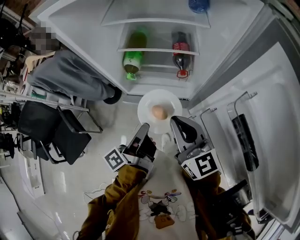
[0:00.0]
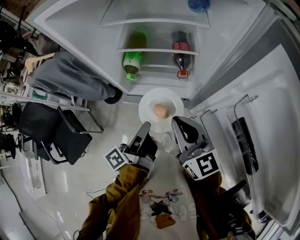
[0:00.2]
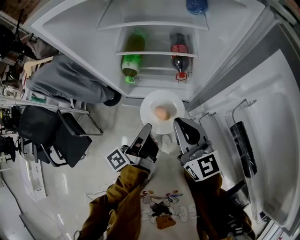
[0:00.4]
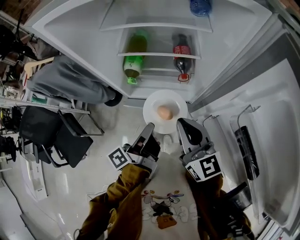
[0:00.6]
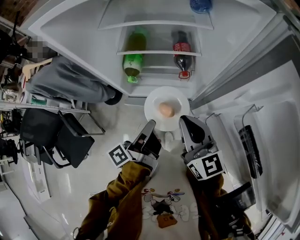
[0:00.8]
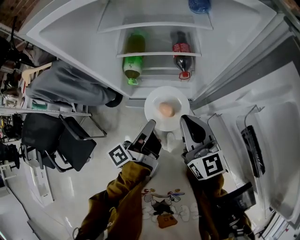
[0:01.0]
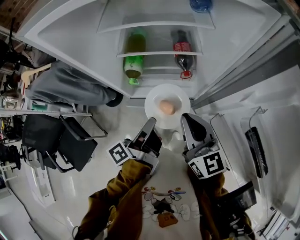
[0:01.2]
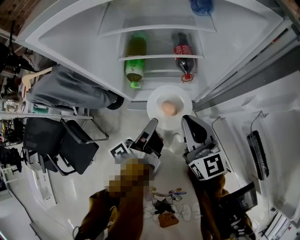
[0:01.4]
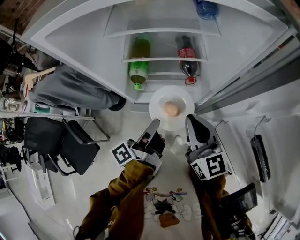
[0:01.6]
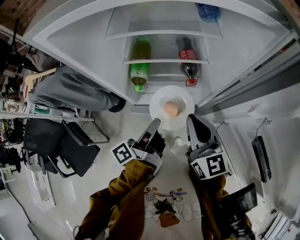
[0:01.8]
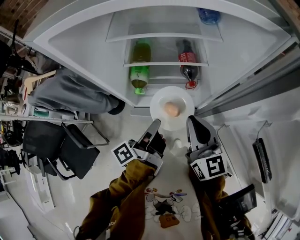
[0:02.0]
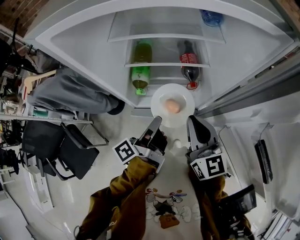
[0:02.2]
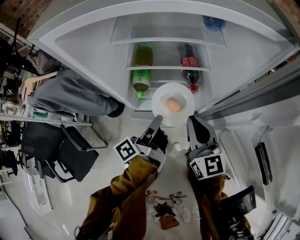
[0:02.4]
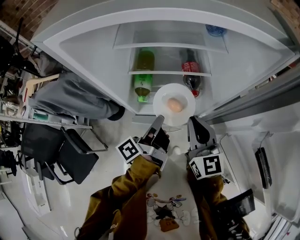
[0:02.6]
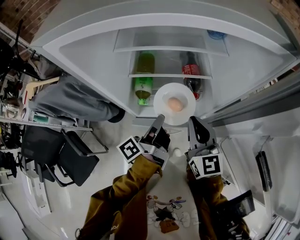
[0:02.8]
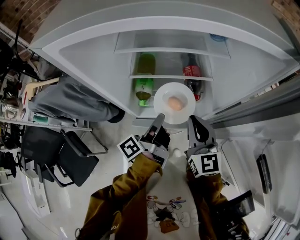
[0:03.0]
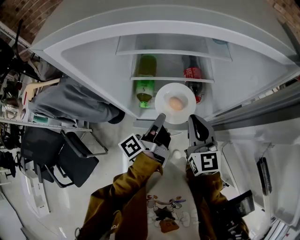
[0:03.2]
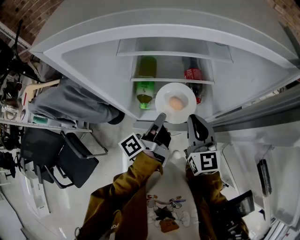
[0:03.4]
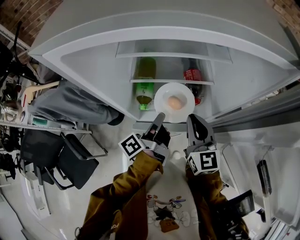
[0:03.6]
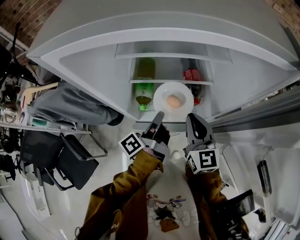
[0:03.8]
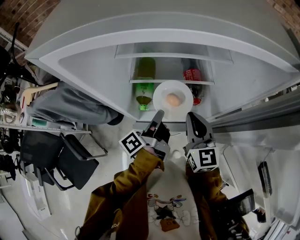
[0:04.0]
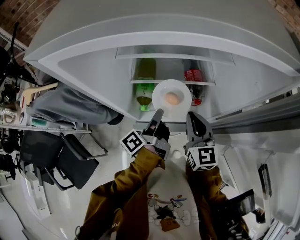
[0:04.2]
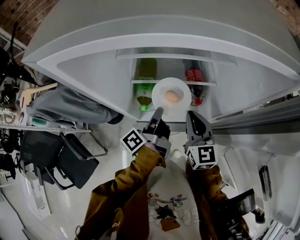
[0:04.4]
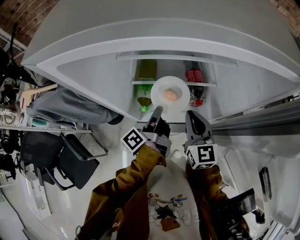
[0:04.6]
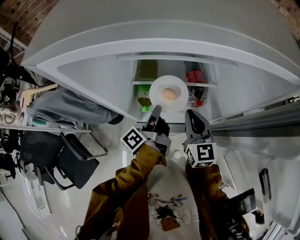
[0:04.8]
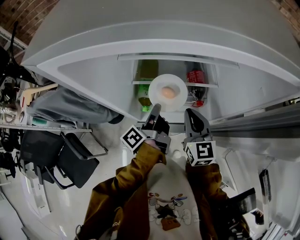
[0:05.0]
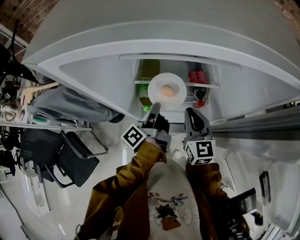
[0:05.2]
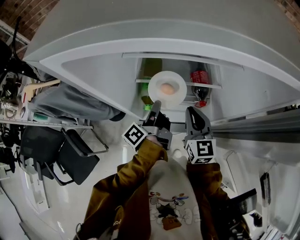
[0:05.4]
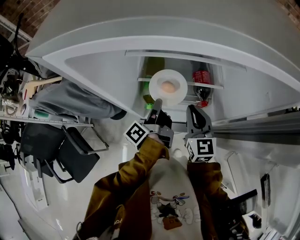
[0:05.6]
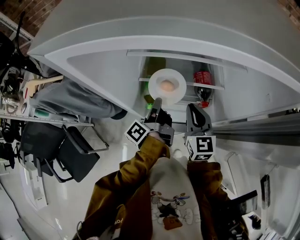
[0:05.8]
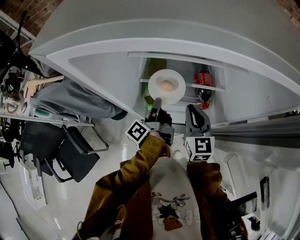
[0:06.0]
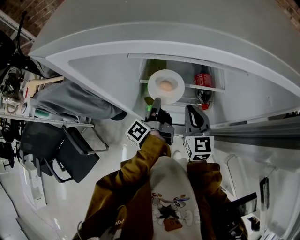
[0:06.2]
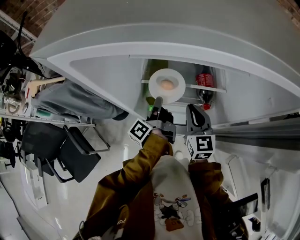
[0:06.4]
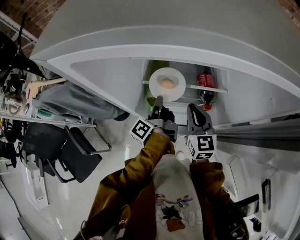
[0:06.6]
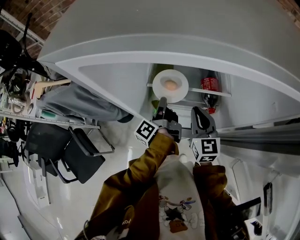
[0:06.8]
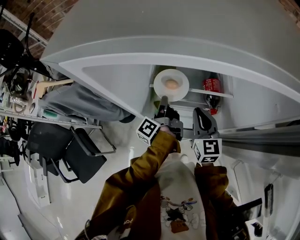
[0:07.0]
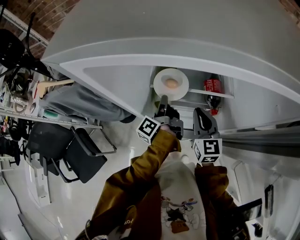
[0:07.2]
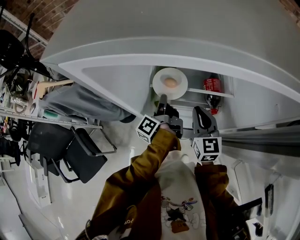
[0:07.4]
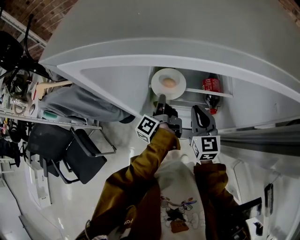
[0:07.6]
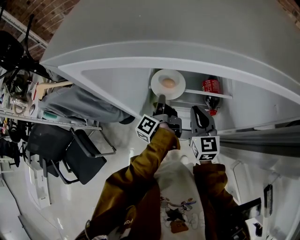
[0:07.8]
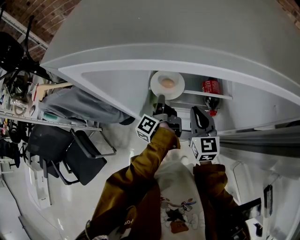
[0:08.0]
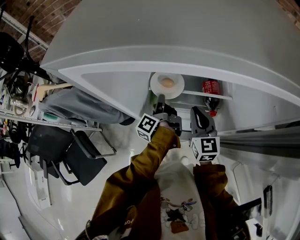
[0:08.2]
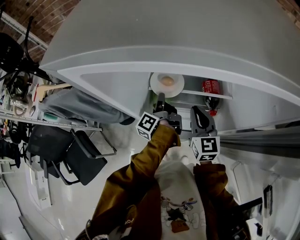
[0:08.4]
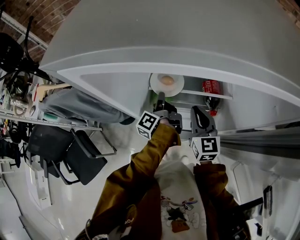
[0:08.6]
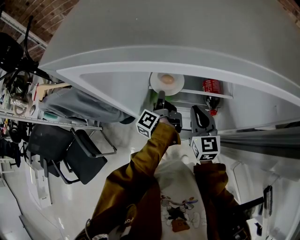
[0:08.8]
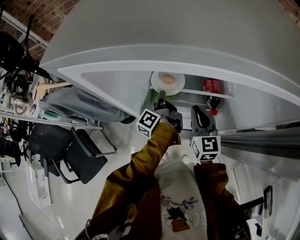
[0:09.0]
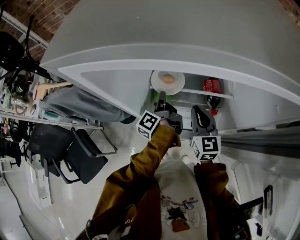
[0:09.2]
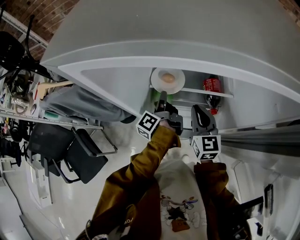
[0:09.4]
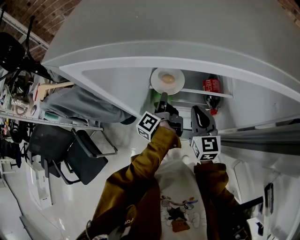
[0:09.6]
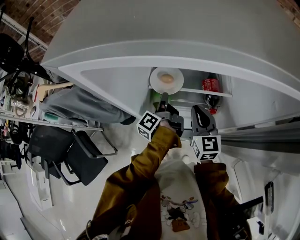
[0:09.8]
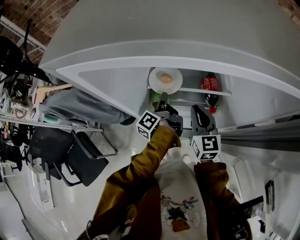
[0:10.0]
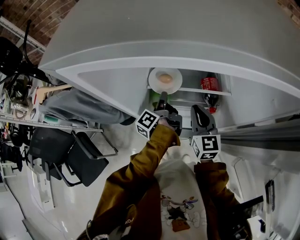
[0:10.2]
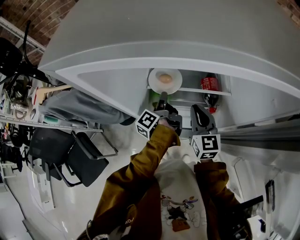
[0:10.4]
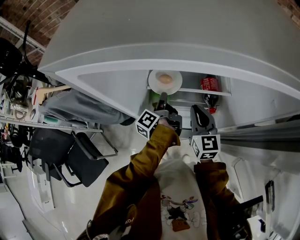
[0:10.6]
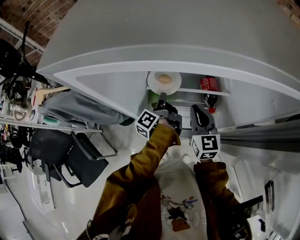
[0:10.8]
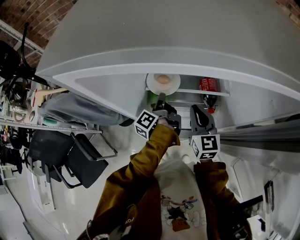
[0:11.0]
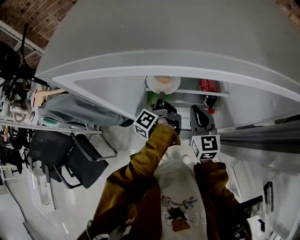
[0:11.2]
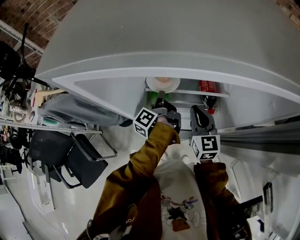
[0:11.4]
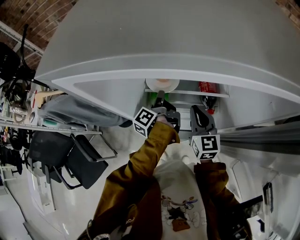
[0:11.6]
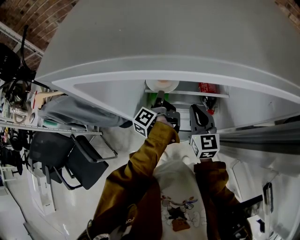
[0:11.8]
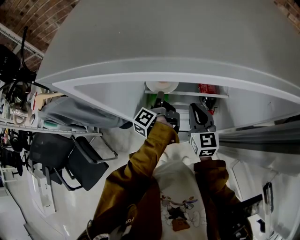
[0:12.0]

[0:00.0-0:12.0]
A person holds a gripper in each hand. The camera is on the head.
0:00.0 to 0:01.6: The right gripper moves approximately 5 cm.
0:01.6 to 0:03.0: The right gripper changes place by some 5 cm.
0:03.0 to 0:04.4: The right gripper changes place by roughly 5 cm.
0:04.4 to 0:06.0: The right gripper ends up approximately 5 cm from where it was.

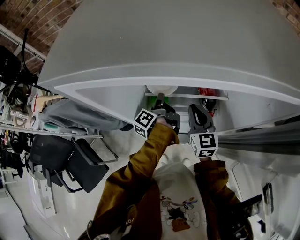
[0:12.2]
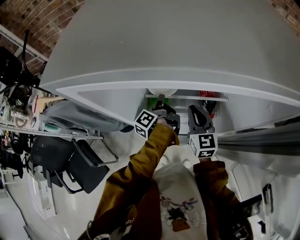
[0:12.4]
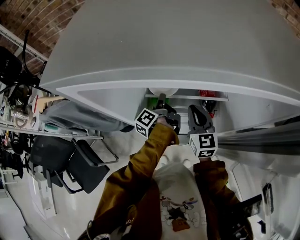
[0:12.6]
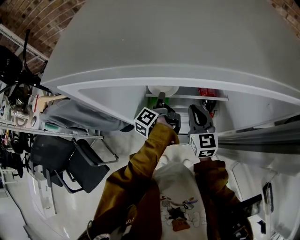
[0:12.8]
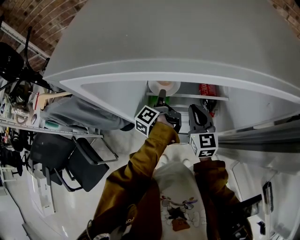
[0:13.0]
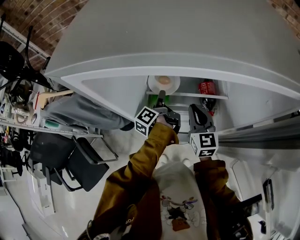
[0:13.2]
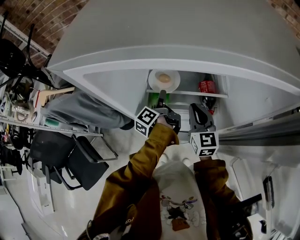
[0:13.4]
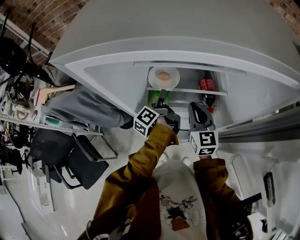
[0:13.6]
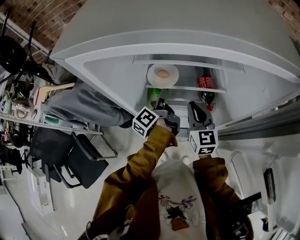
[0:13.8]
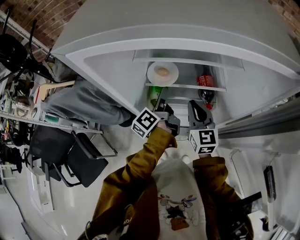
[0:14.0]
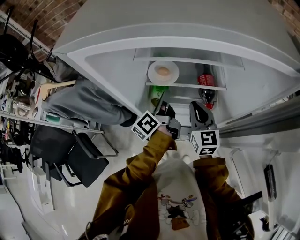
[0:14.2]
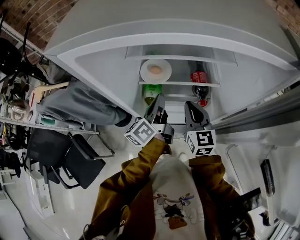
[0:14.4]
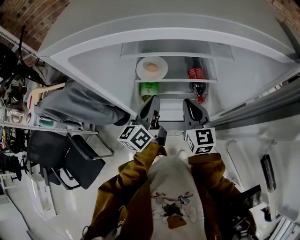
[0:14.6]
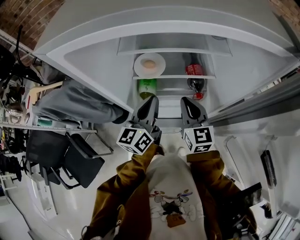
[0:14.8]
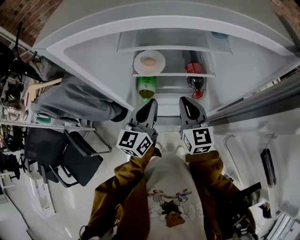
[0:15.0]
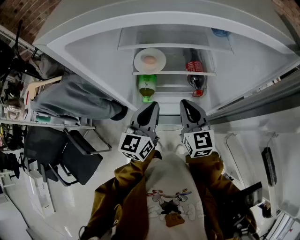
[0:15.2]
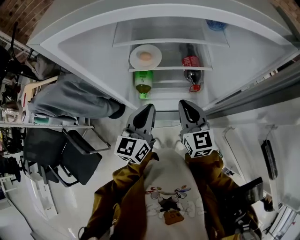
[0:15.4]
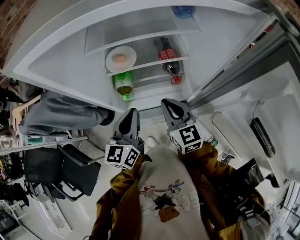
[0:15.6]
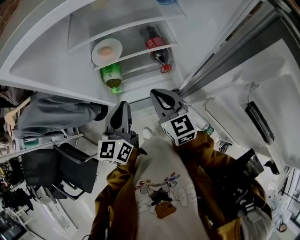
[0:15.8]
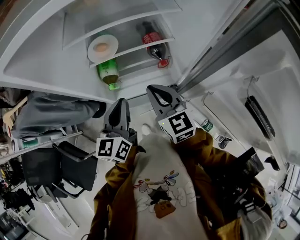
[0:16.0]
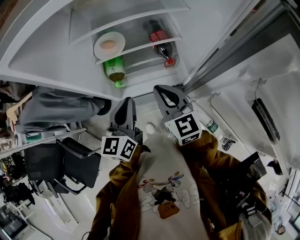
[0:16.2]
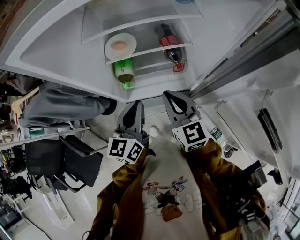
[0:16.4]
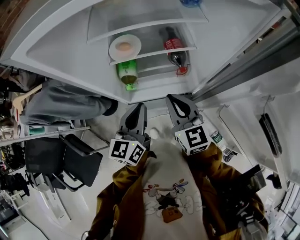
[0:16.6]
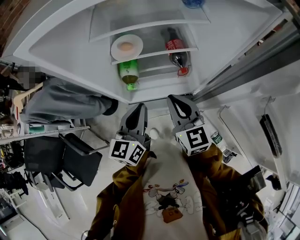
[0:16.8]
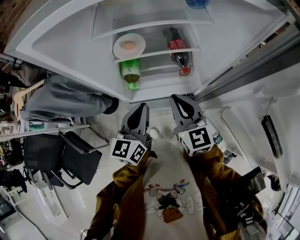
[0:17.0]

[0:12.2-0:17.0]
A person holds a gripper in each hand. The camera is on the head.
0:13.8 to 0:15.4: The right gripper changes place by roughly 10 cm.

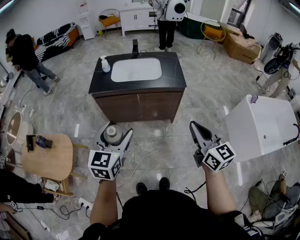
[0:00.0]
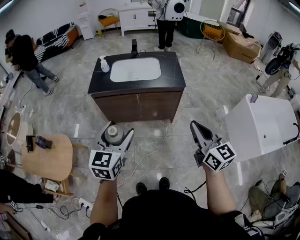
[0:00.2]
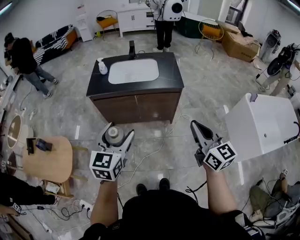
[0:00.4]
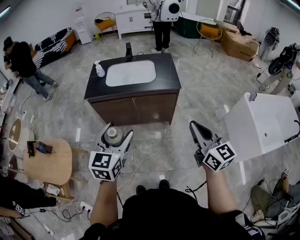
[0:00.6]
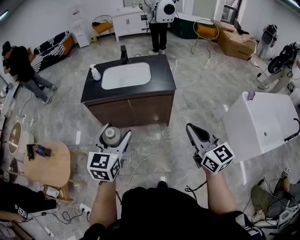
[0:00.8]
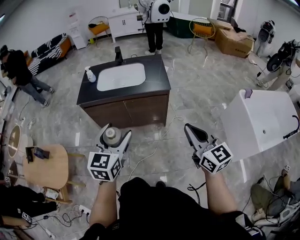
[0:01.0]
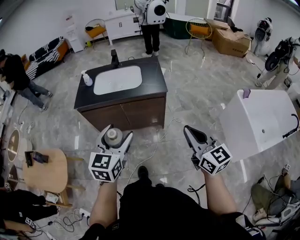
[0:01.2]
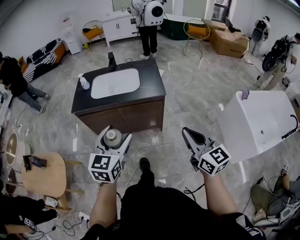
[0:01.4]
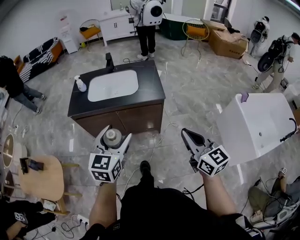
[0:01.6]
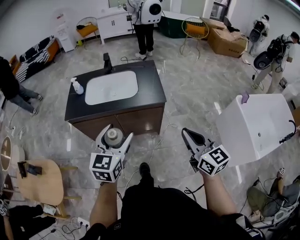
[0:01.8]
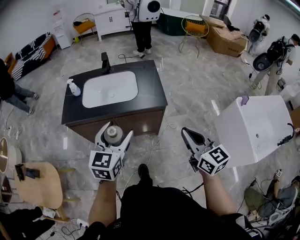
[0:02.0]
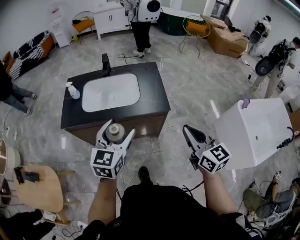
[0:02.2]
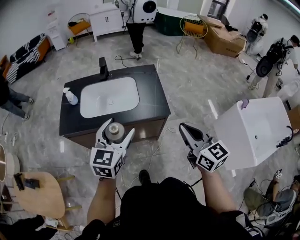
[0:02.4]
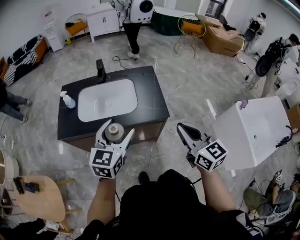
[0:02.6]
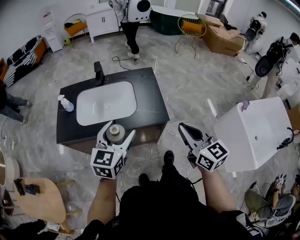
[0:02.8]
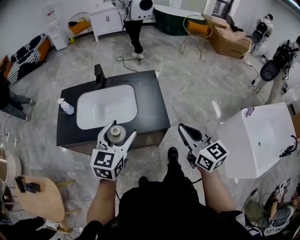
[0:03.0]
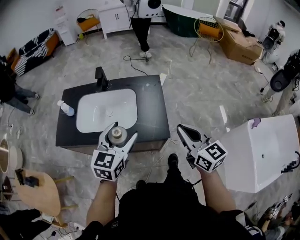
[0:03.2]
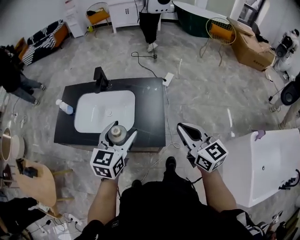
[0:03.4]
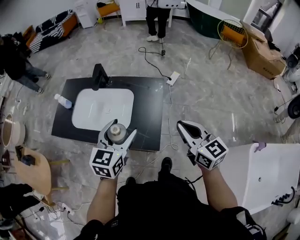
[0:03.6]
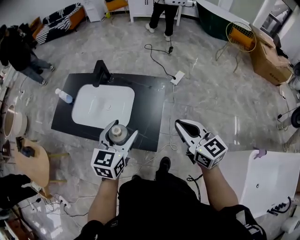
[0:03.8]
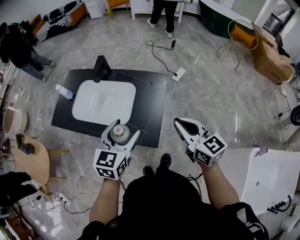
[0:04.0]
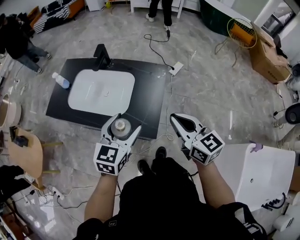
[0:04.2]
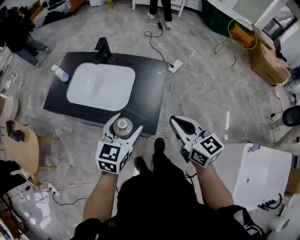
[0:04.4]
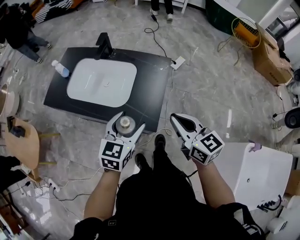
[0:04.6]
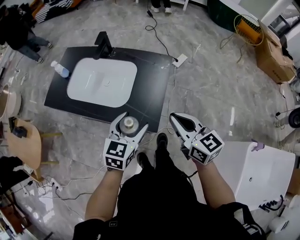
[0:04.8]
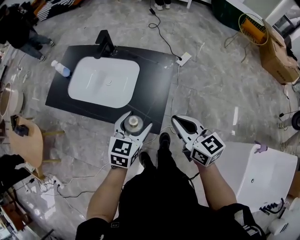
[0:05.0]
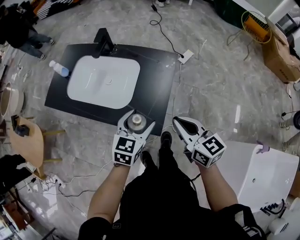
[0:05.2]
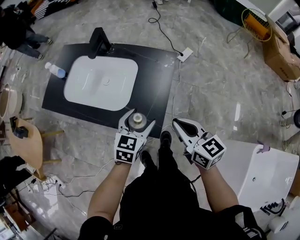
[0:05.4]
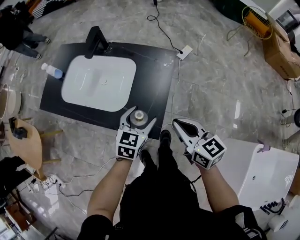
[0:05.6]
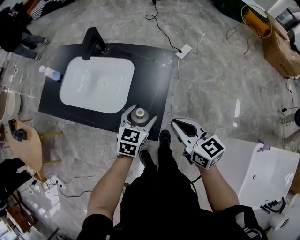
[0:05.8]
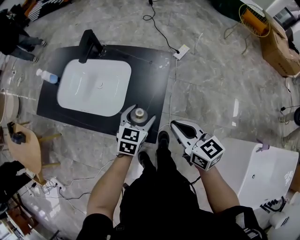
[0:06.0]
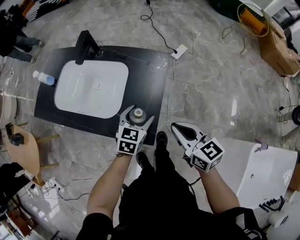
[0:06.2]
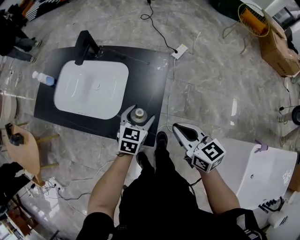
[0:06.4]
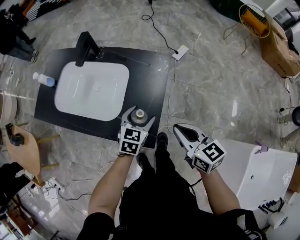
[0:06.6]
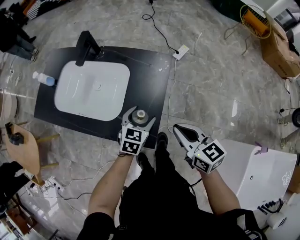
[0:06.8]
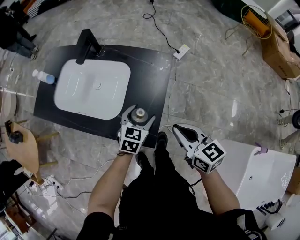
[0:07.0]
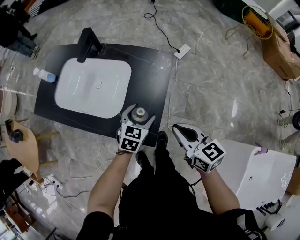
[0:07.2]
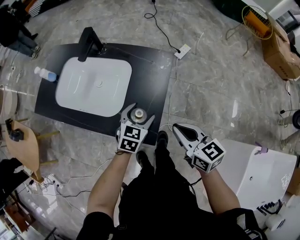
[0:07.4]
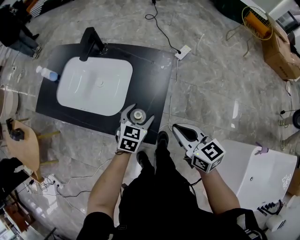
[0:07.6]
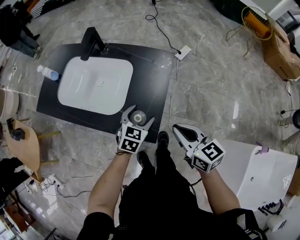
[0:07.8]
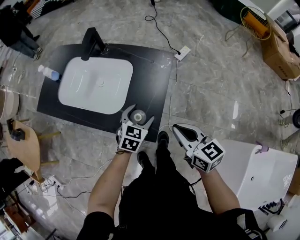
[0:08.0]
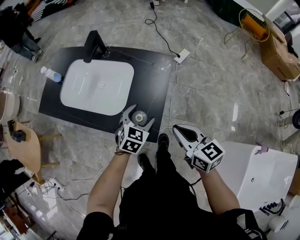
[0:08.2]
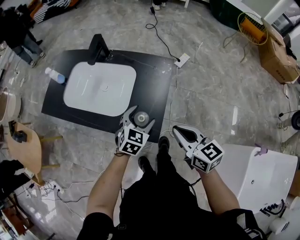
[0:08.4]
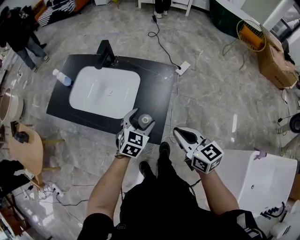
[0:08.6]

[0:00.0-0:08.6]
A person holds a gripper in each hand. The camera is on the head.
0:00.0 to 0:01.4: Both grippers travel together to the right, roughly 15 cm.
0:01.4 to 0:02.8: The two grippers go roughly 30 cm forward.
0:02.8 to 0:04.4: The right gripper travels forward and to the right by approximately 20 cm, and turns by about 30 degrees. Meanwhile the left gripper travels to the right, forward and downward by some 20 cm.
0:04.4 to 0:05.8: The left gripper moves downward, forward and to the right, roughly 20 cm; the right gripper moves downward and forward, about 10 cm.
0:05.8 to 0:07.2: The left gripper ends up roughly 5 cm from where it was.
0:07.2 to 0:08.6: The right gripper heads upward, covering some 5 cm, while the left gripper is displaced upward by roughly 10 cm.
